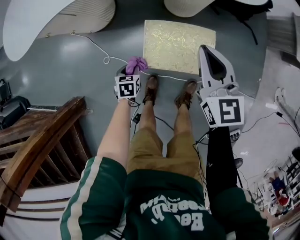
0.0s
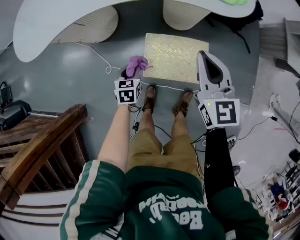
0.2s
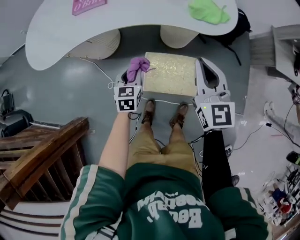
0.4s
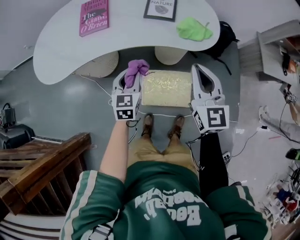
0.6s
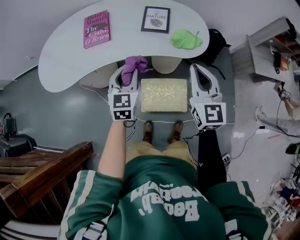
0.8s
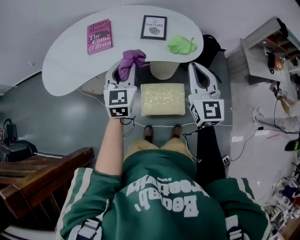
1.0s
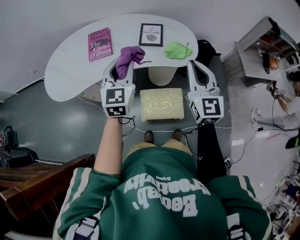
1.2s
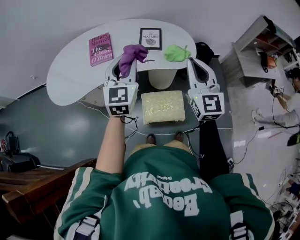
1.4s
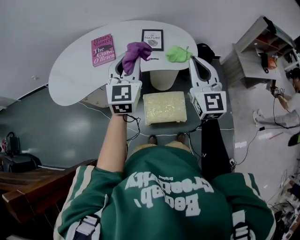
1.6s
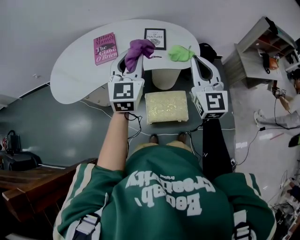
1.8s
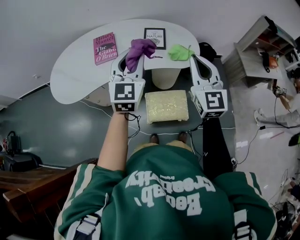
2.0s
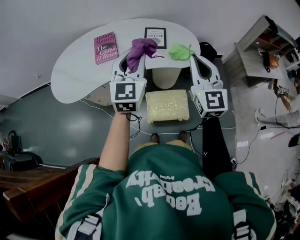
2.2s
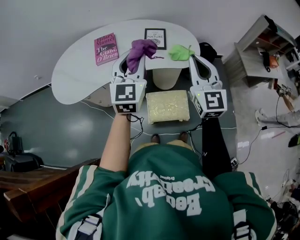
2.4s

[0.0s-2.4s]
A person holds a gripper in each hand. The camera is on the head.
0.0s to 1.2s: The left gripper goes about 60 cm upward, and tips its fingers upward by some 60 degrees. Meanwhile the right gripper is displaced upward by roughly 35 cm, and swivels roughly 30 degrees.
1.2s to 2.4s: The left gripper travels upward by some 5 cm.

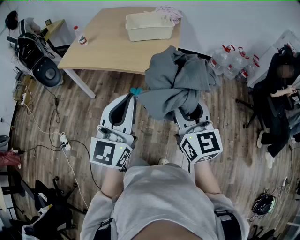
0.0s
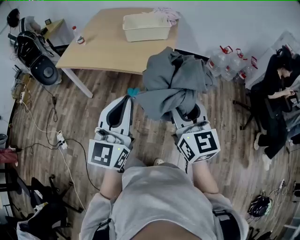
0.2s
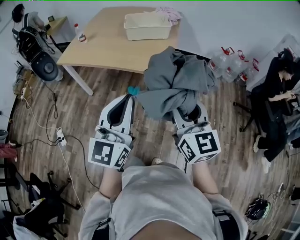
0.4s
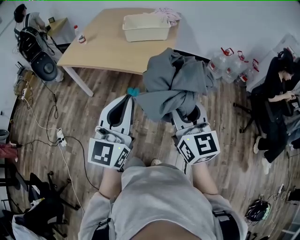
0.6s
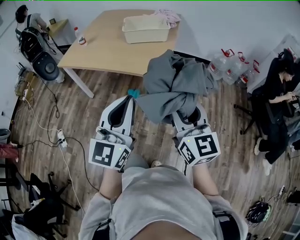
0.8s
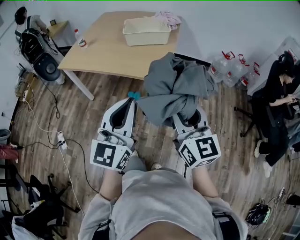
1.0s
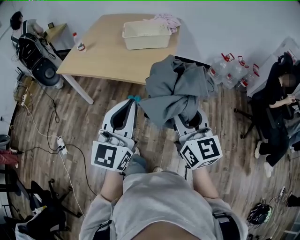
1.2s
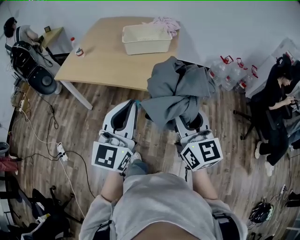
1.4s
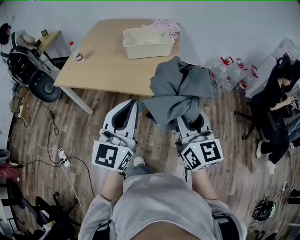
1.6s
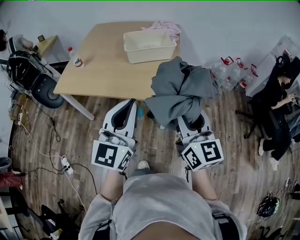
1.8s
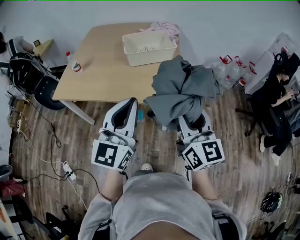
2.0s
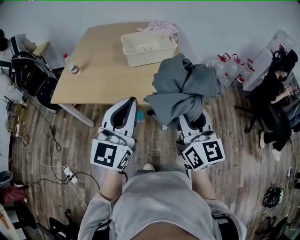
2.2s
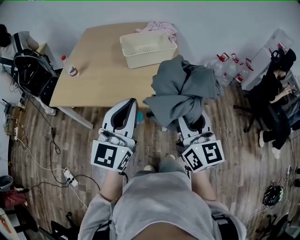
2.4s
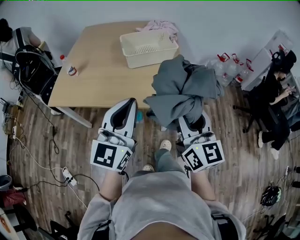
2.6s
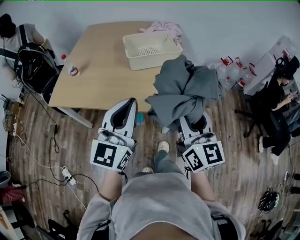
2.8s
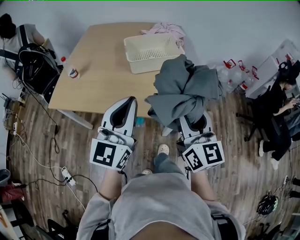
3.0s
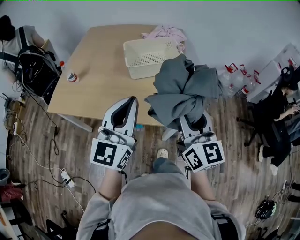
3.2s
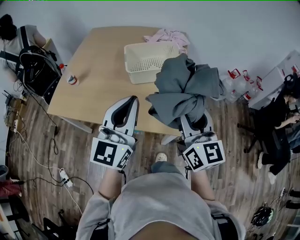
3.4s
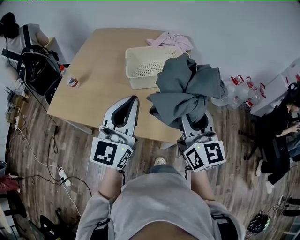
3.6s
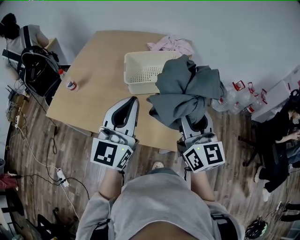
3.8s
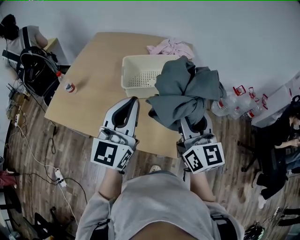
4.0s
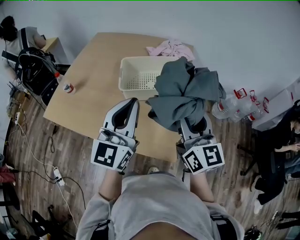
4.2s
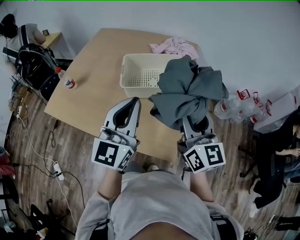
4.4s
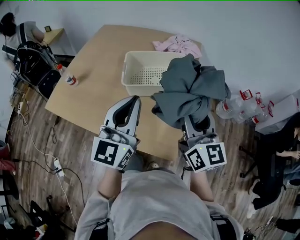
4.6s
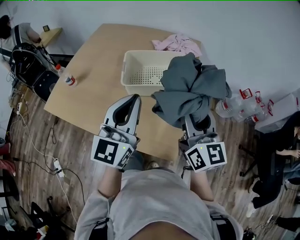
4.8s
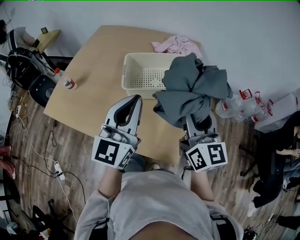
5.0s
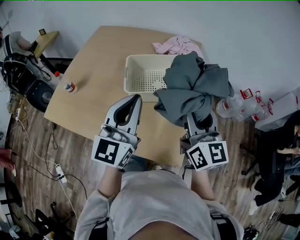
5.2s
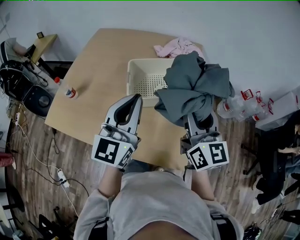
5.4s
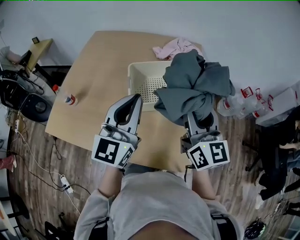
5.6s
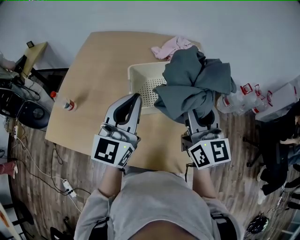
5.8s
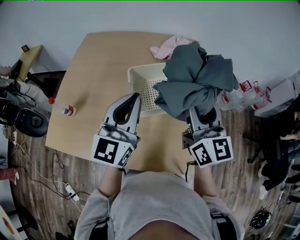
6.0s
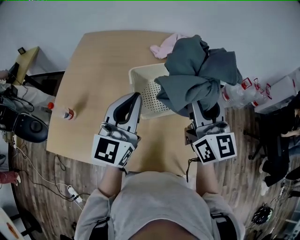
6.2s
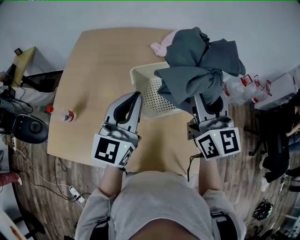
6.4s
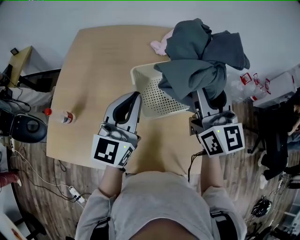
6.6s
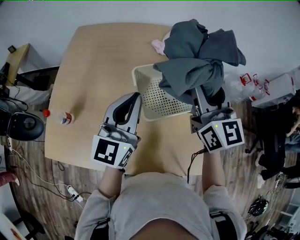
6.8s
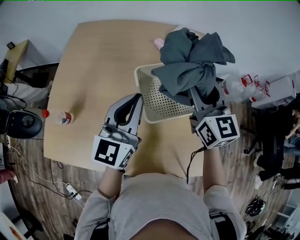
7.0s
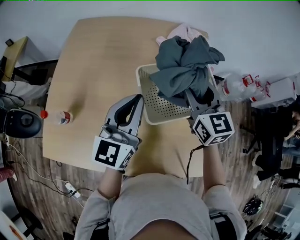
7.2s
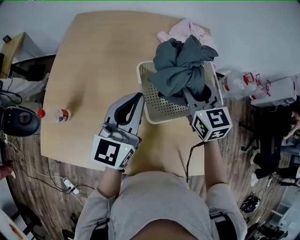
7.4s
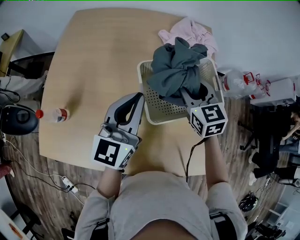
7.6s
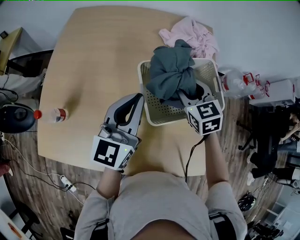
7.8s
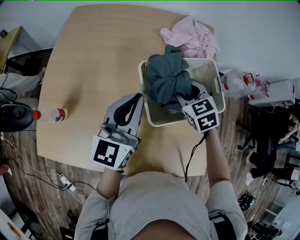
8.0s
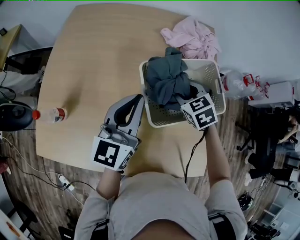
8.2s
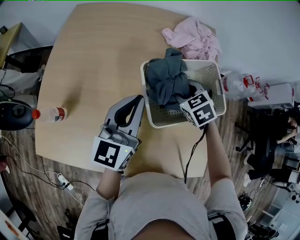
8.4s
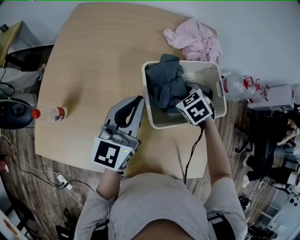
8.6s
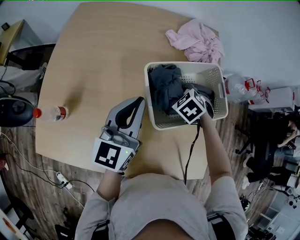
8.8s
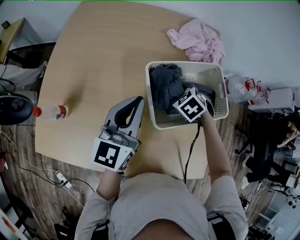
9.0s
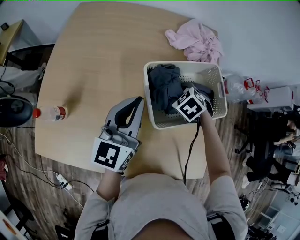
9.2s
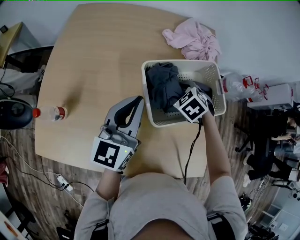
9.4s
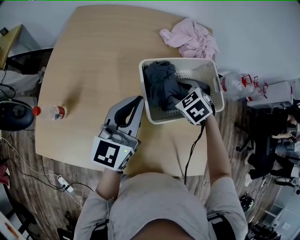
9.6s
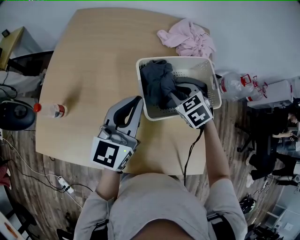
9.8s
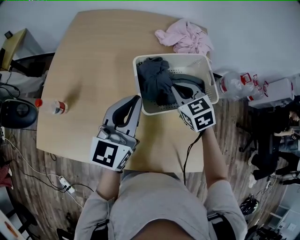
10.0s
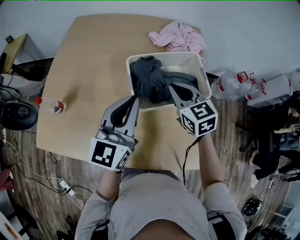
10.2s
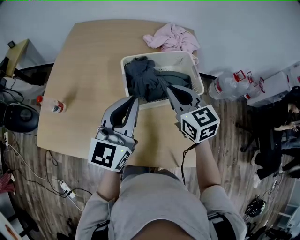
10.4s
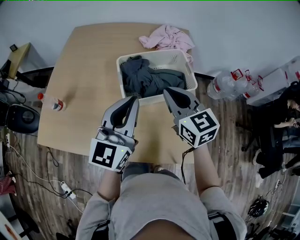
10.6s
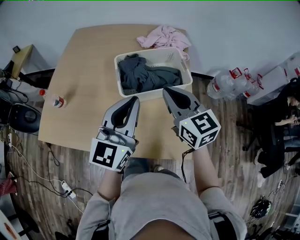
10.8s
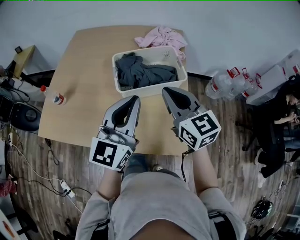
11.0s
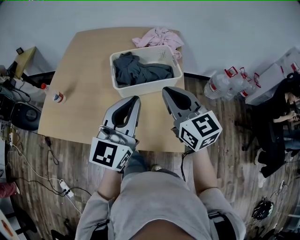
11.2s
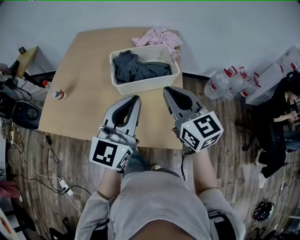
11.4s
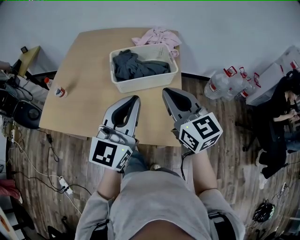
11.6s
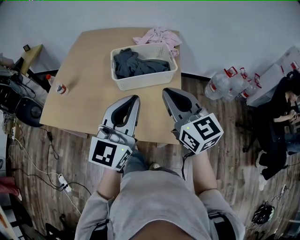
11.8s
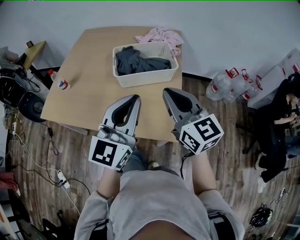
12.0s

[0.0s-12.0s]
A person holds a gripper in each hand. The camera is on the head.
0.0s to 1.6s: The two grippers go about 10 cm forward.
1.6s to 3.0s: The two grippers go about 20 cm forward and to the left.
3.0s to 4.4s: The left gripper travels forward and to the right by about 20 cm, while the right gripper goes some 20 cm forward.
4.4s to 6.0s: Both grippers move forward and to the left, about 20 cm.
6.0s to 7.6s: The right gripper heads downward, forward and to the left, covering about 25 cm, and angles its fingers downward, by some 30 degrees; the left gripper shifts about 15 cm forward, downward and to the left.
7.6s to 9.0s: The right gripper goes some 15 cm downward, and points its fingers approximately 40 degrees further downward.
9.0s to 10.4s: The left gripper travels backward, to the right and upward by approximately 15 cm. The right gripper travels upward and backward by approximately 25 cm, tips its fingers upward by about 50 degrees, and closes.
10.4s to 12.0s: Both grippers move backward and to the right, some 25 cm.

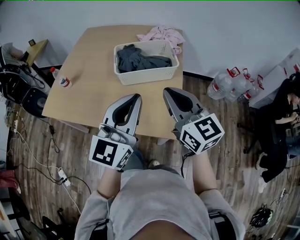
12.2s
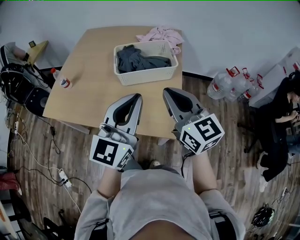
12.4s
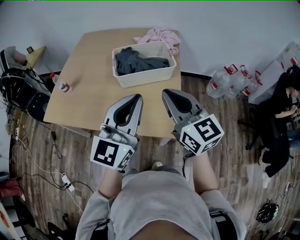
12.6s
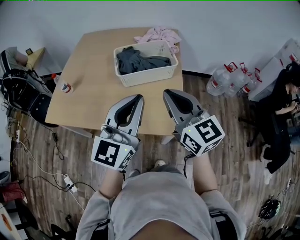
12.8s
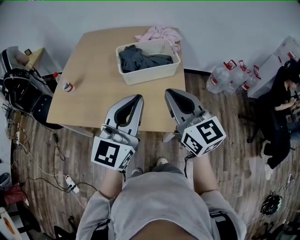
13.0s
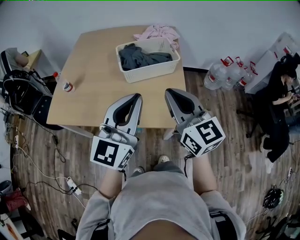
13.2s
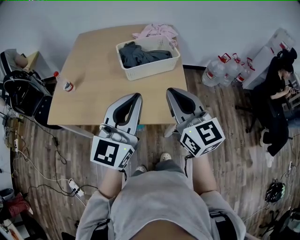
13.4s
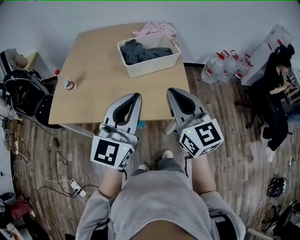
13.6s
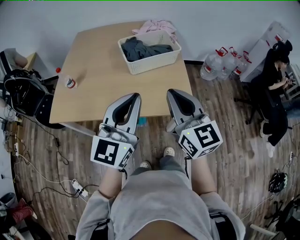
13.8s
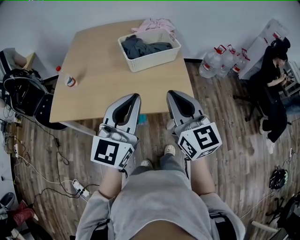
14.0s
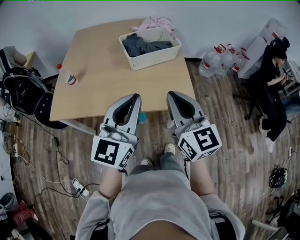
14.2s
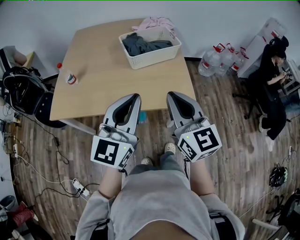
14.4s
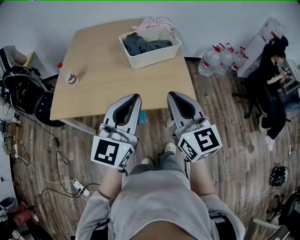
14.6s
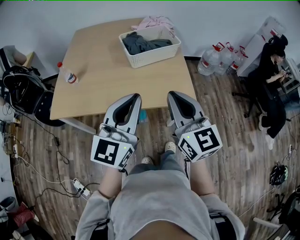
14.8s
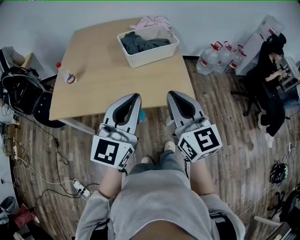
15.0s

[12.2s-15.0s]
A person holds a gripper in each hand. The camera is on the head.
12.2s to 13.6s: The grippers both shift to the left and backward by roughly 15 cm.
13.6s to 15.0s: Both grippers move backward, some 5 cm.

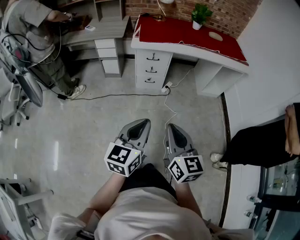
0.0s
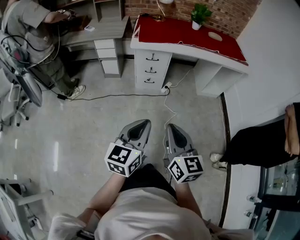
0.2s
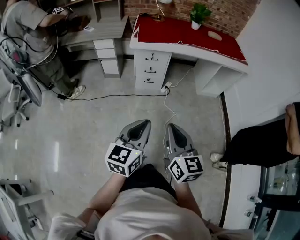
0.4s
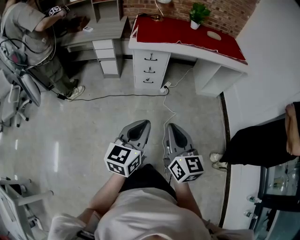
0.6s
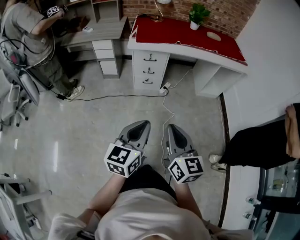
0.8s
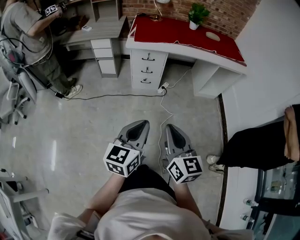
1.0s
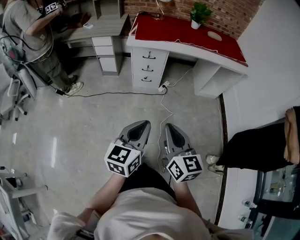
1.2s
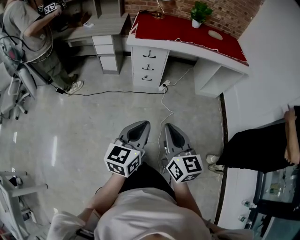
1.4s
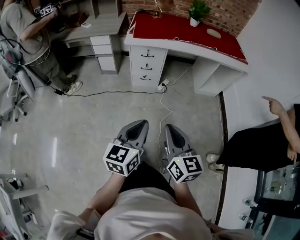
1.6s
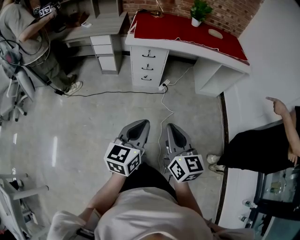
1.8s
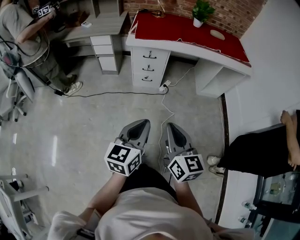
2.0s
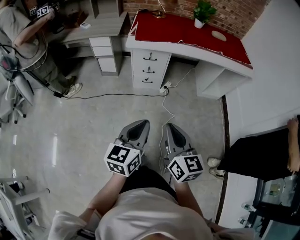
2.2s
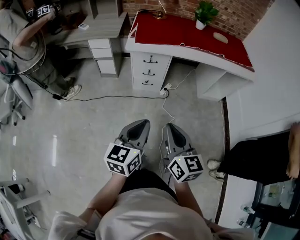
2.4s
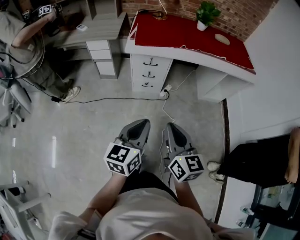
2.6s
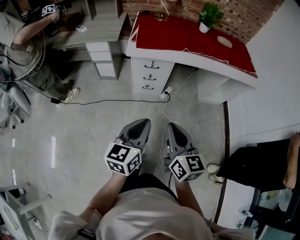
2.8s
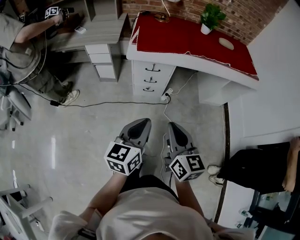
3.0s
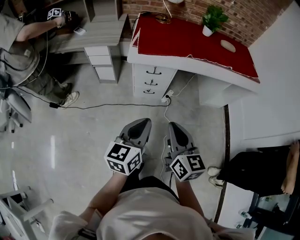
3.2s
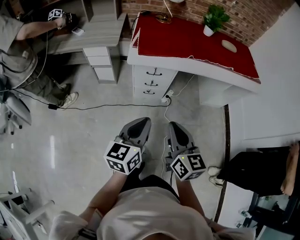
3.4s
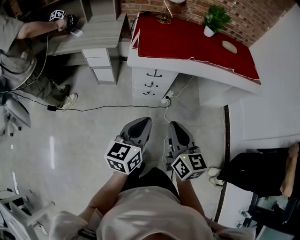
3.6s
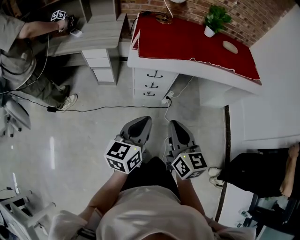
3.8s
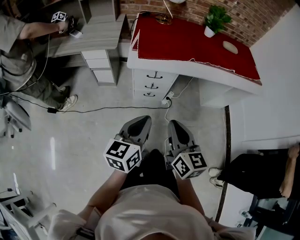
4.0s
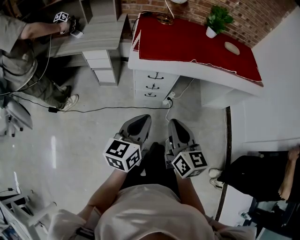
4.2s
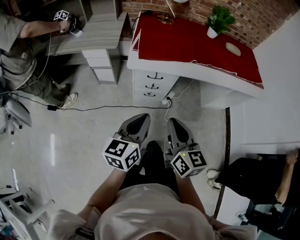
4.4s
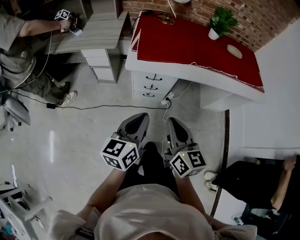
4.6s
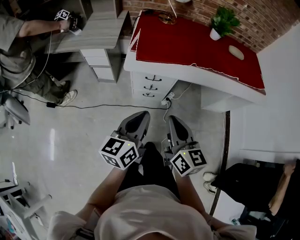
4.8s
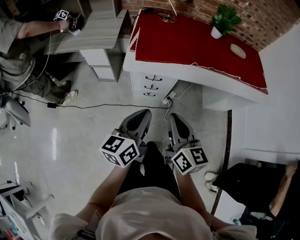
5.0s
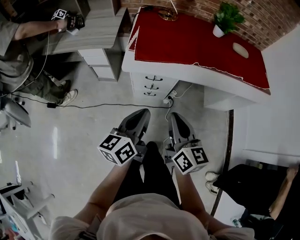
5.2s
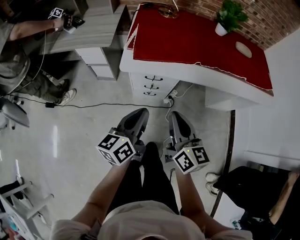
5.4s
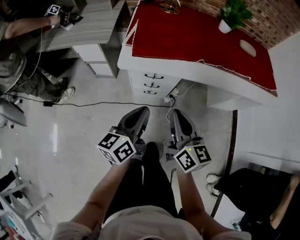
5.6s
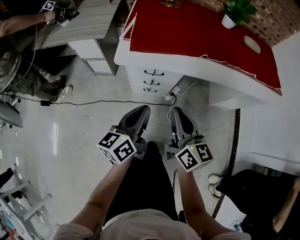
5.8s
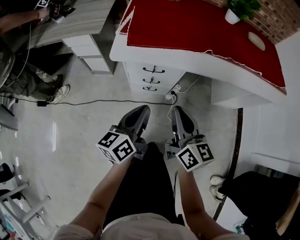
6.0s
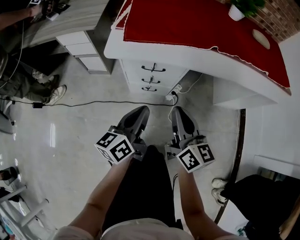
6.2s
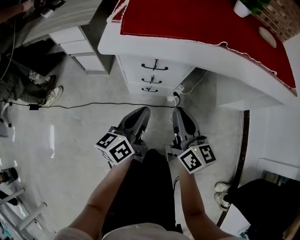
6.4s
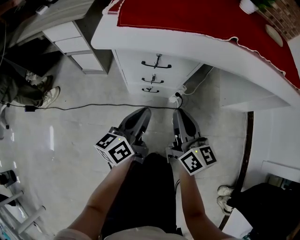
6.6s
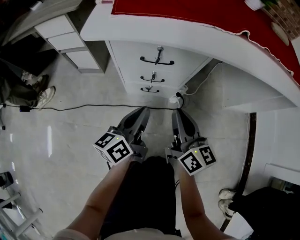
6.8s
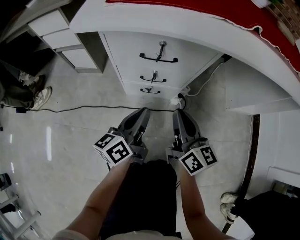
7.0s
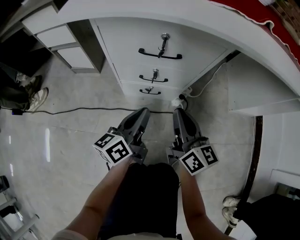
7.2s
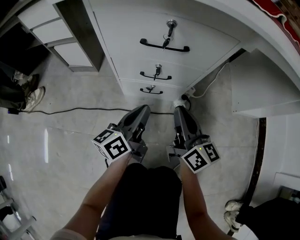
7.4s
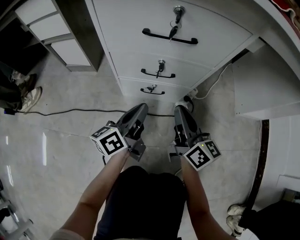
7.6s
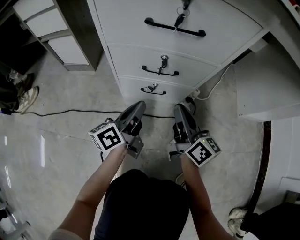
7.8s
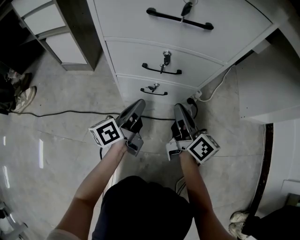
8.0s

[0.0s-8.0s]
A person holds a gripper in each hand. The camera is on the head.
0.0s to 1.6s: The grippers both shift to the right by about 5 cm.
1.6s to 3.2s: Both grippers move forward, roughly 25 cm.
3.2s to 4.8s: Both grippers move forward, roughly 15 cm.
4.8s to 6.4s: The grippers both shift downward and forward by some 30 cm.
6.4s to 8.0s: The grippers both shift downward by some 40 cm.
